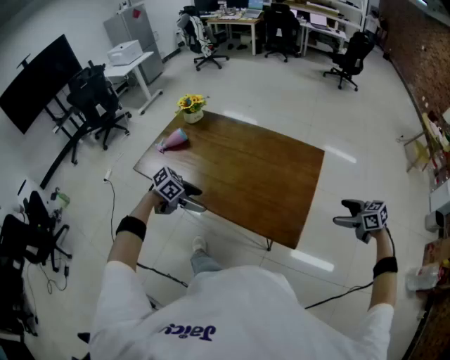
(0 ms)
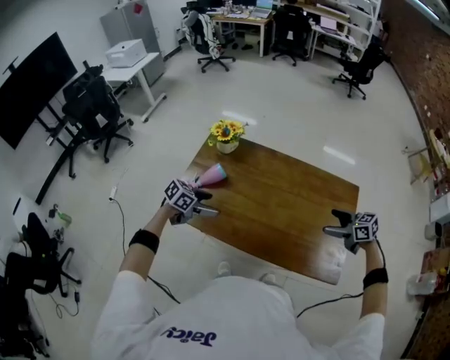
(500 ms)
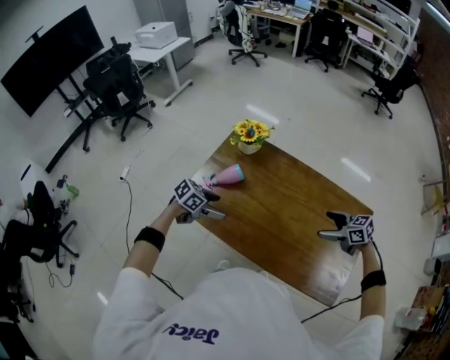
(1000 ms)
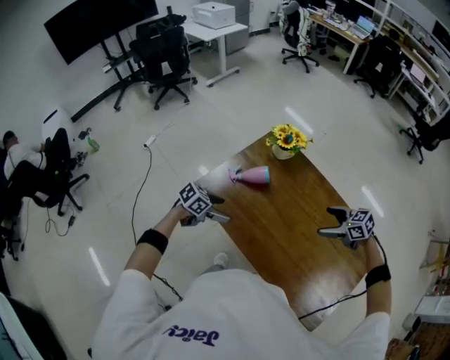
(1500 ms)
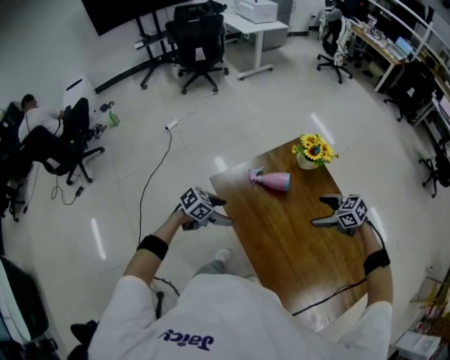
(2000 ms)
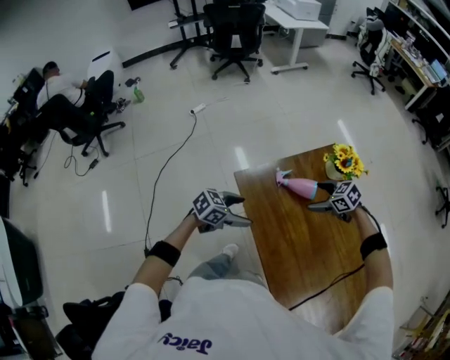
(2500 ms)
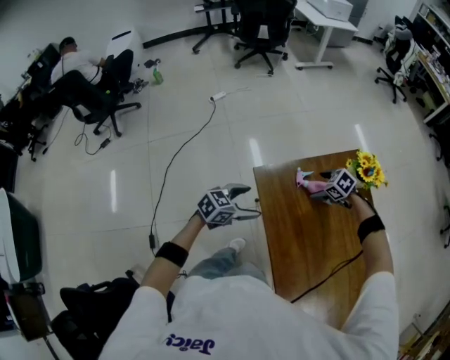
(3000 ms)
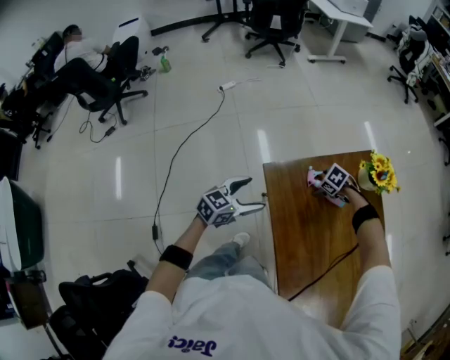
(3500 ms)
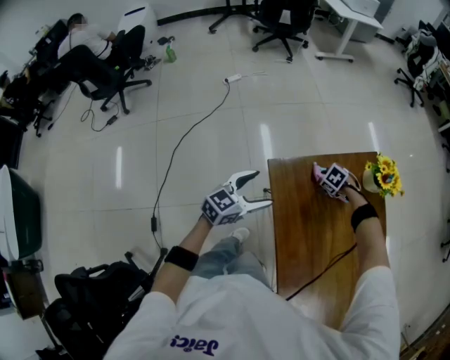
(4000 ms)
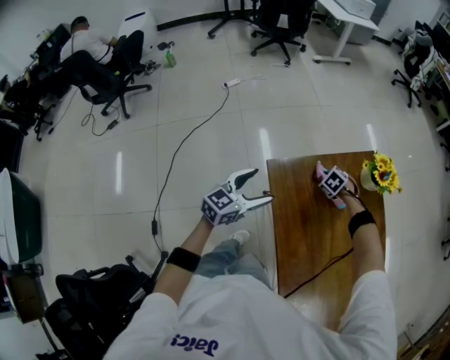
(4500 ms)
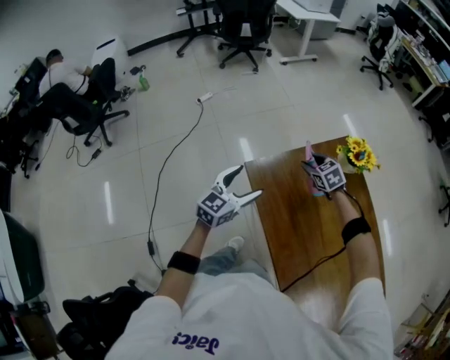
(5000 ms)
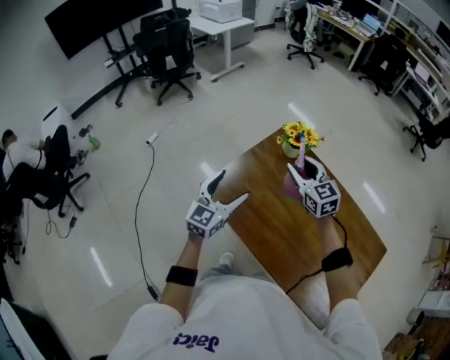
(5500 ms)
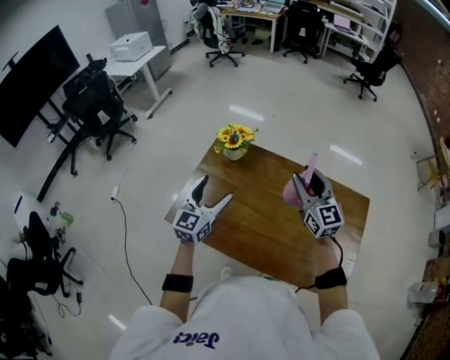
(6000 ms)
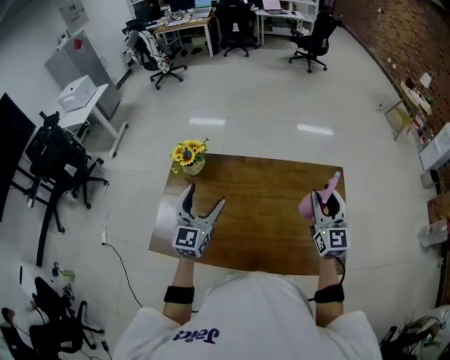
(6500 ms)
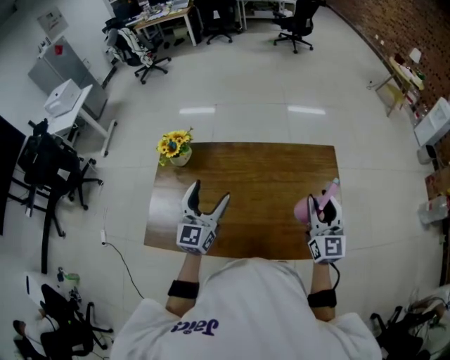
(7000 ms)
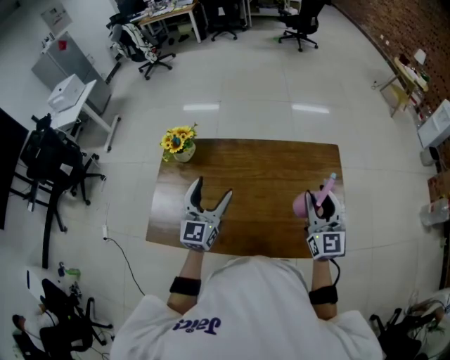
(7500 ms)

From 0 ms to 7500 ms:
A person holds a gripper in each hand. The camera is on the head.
From 0 ms to 2000 ms: The right gripper shifts by approximately 70 cm, and rotates approximately 50 degrees; the left gripper shifts by roughly 40 cm, and turns by about 40 degrees.
From 2000 ms to 4000 ms: The left gripper ends up some 15 cm from where it was, and swivels some 50 degrees. The right gripper moves roughly 40 cm, and angles its fingers downward, by approximately 30 degrees.
From 4000 ms to 5500 ms: The right gripper moves upward, roughly 35 cm, tilts its fingers approximately 60 degrees upward, and closes. The left gripper moves upward, about 15 cm.
From 5500 ms to 7500 ms: The left gripper moves some 30 cm, and rotates some 30 degrees; the right gripper moves roughly 50 cm, and changes its angle by approximately 70 degrees.

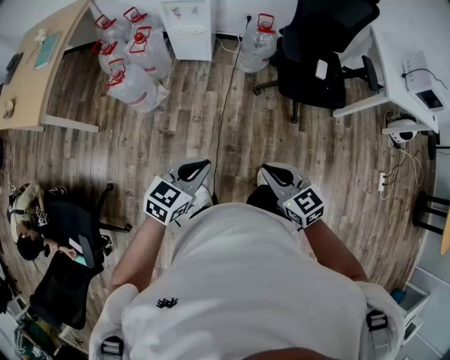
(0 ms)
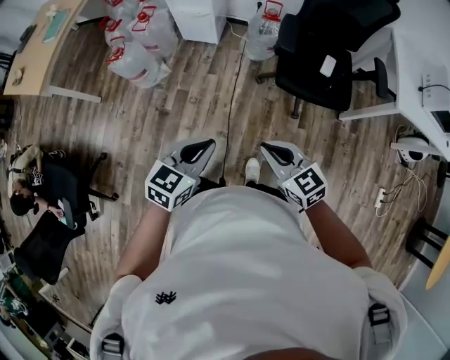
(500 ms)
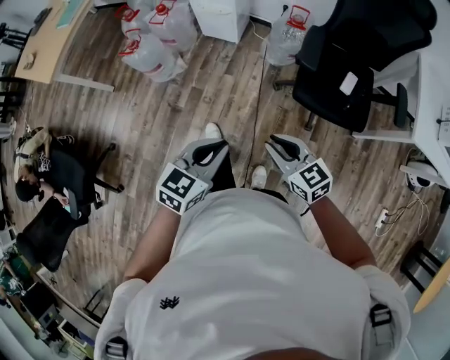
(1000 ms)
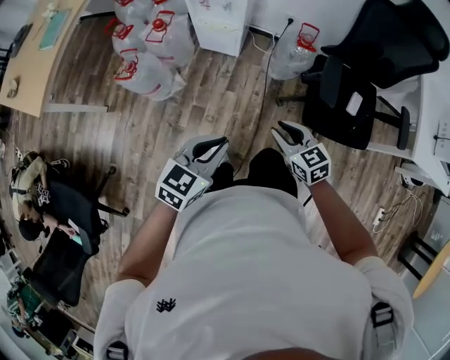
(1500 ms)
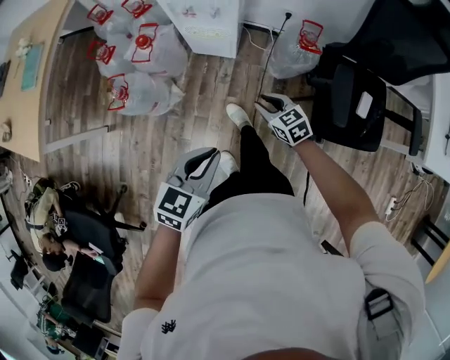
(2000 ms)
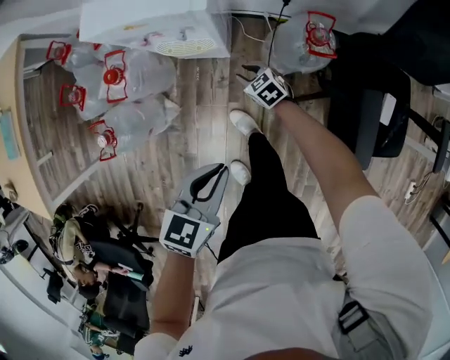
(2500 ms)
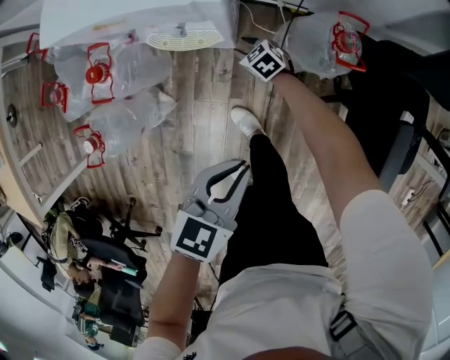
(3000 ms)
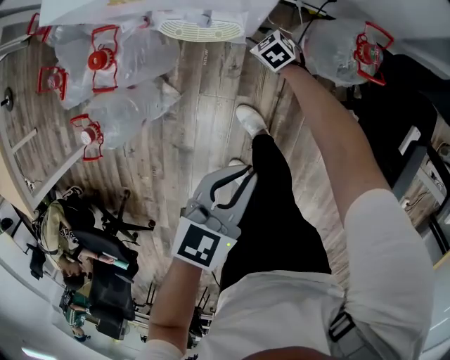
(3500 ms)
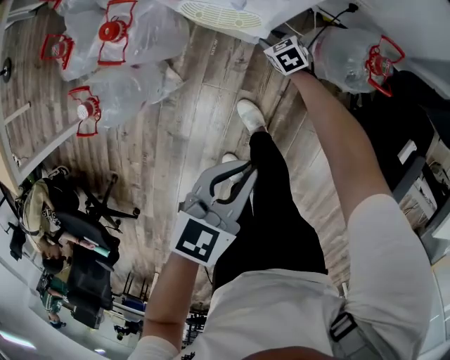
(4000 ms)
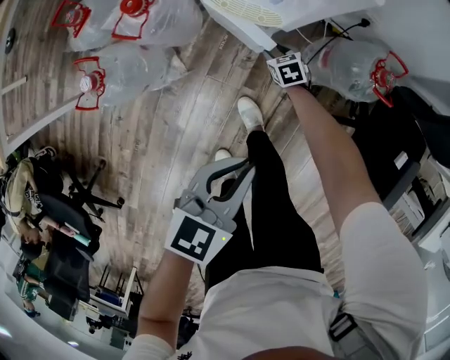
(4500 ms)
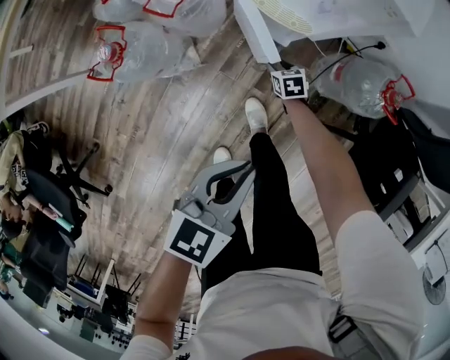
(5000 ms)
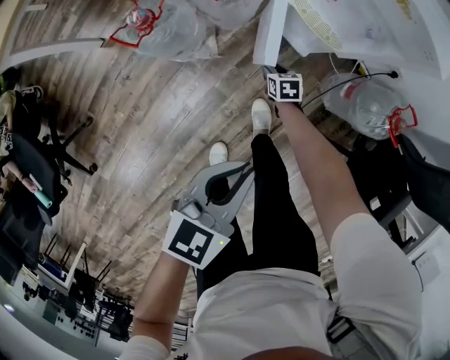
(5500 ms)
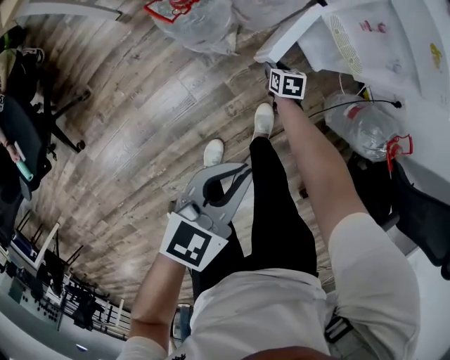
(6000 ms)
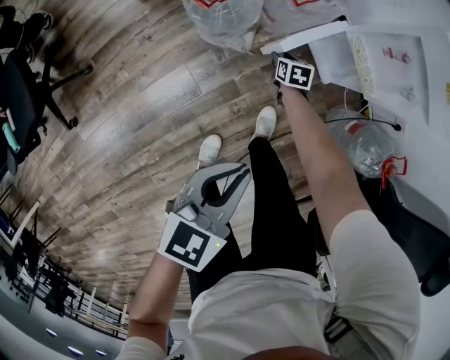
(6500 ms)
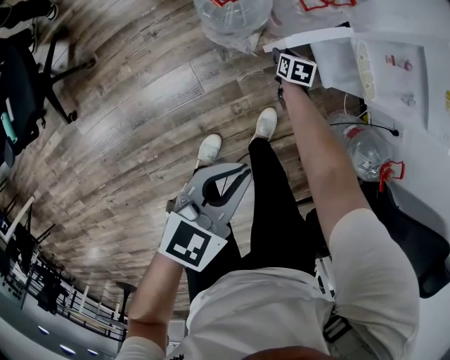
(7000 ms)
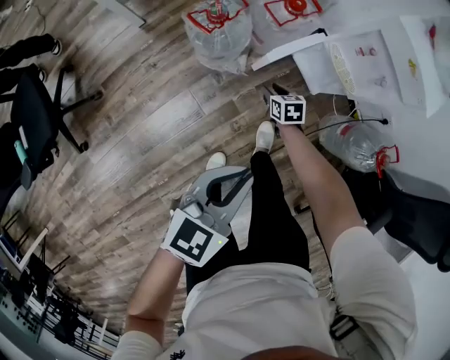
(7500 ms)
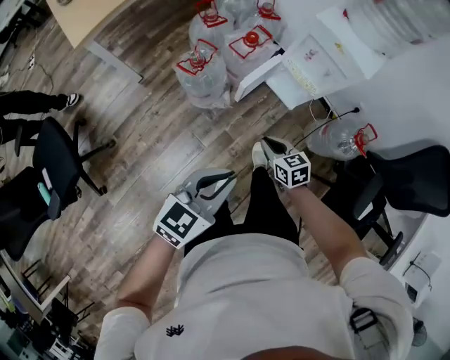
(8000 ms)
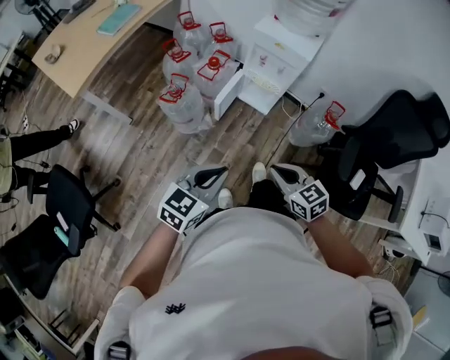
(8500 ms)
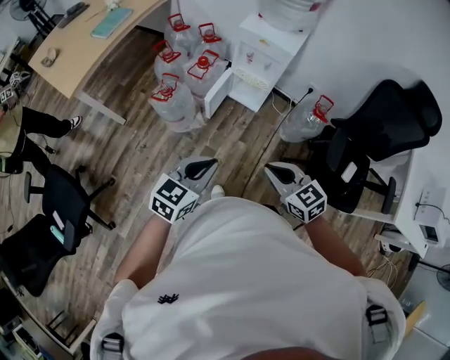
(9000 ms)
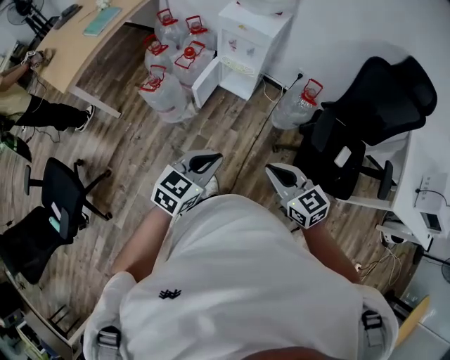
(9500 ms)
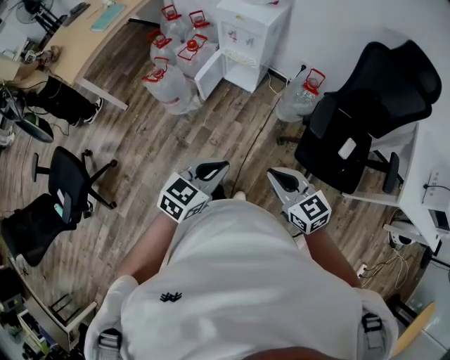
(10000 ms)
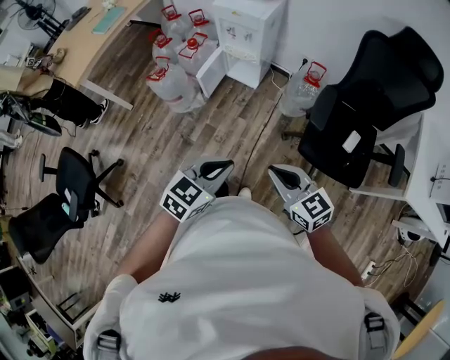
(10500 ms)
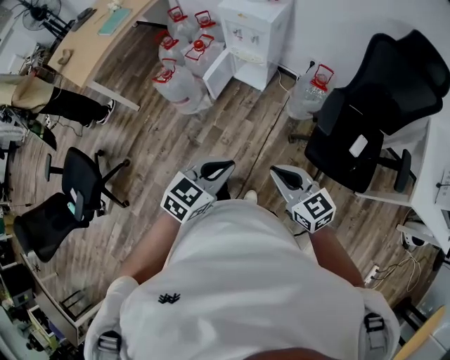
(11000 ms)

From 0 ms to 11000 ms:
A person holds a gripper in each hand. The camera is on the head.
From 0 ms to 2000 ms: The left gripper heads forward, covering approximately 35 cm. Meanwhile the right gripper travels forward and downward by some 50 cm, and opens its fingers.
From 2000 ms to 3500 ms: The left gripper travels forward and downward by approximately 25 cm; the right gripper travels forward and downward by some 50 cm.
From 3500 ms to 5500 ms: The grippers both shift to the left and backward by some 20 cm. The left gripper rotates roughly 30 degrees.
From 5500 ms to 7500 ms: The right gripper travels to the left and upward by about 20 cm. The left gripper moves to the left, upward and backward, about 15 cm.
From 7500 ms to 9000 ms: The right gripper is displaced upward and backward by about 60 cm, changes its angle by roughly 30 degrees, and closes its fingers. Meanwhile the left gripper moves upward and backward, some 20 cm, and turns by roughly 20 degrees.
From 9000 ms to 11000 ms: Both grippers move to the right and backward, about 20 cm.

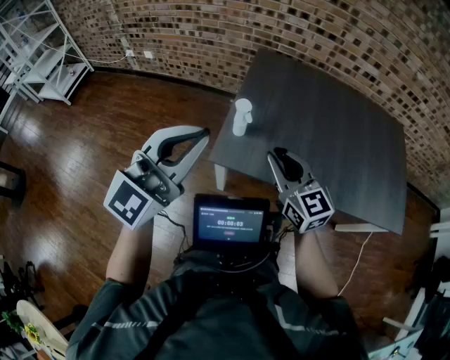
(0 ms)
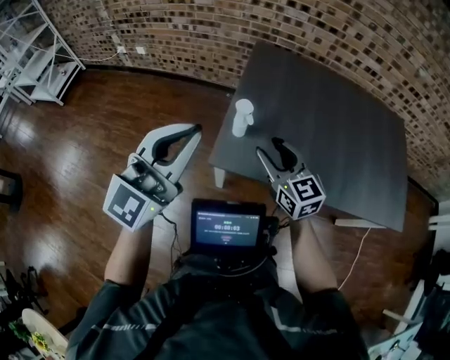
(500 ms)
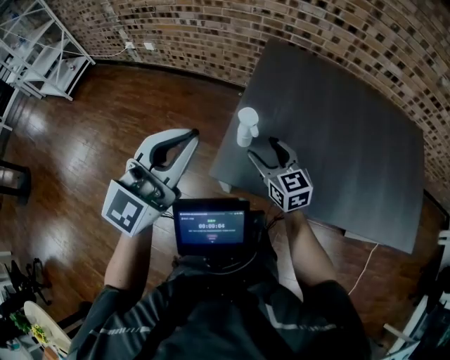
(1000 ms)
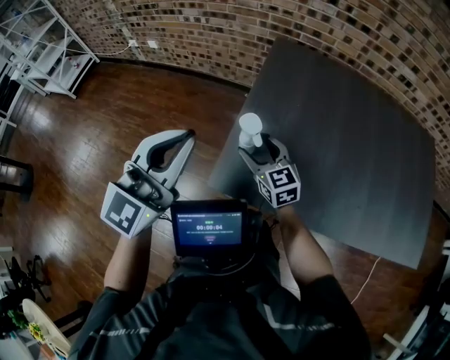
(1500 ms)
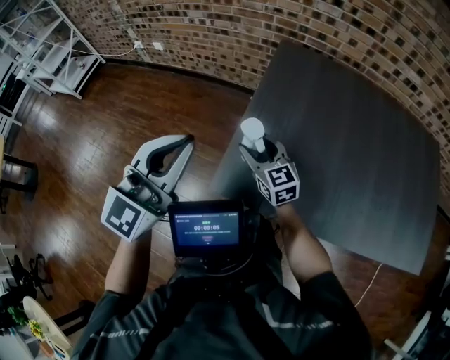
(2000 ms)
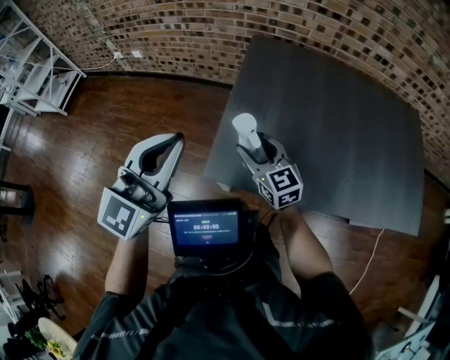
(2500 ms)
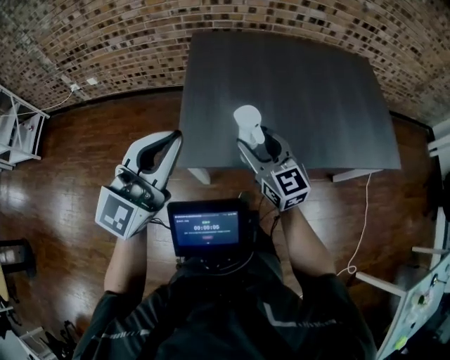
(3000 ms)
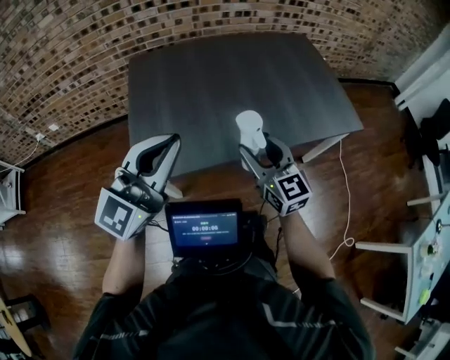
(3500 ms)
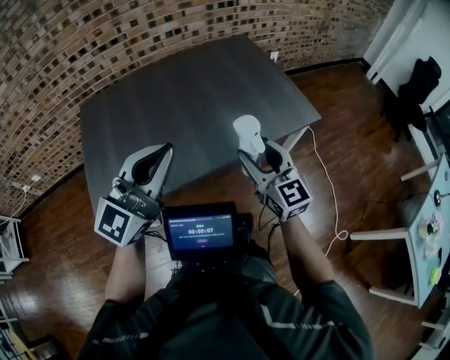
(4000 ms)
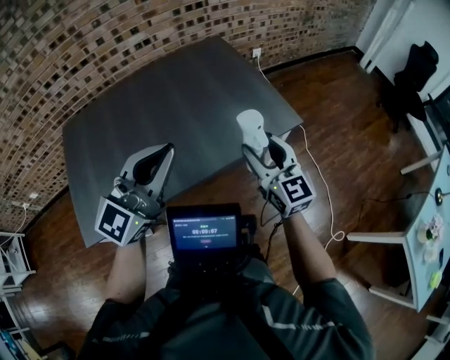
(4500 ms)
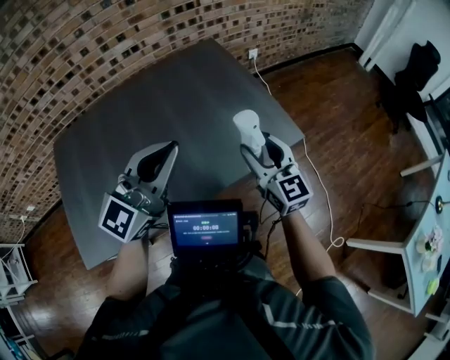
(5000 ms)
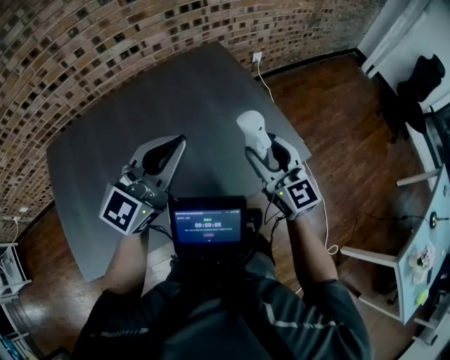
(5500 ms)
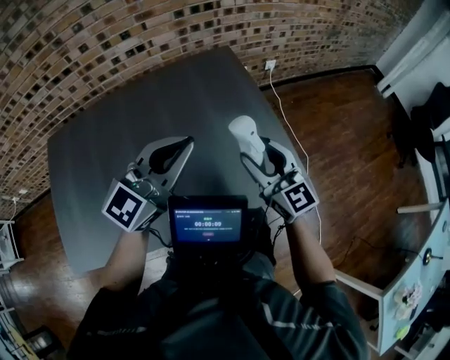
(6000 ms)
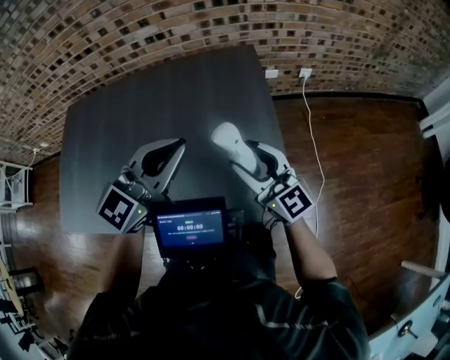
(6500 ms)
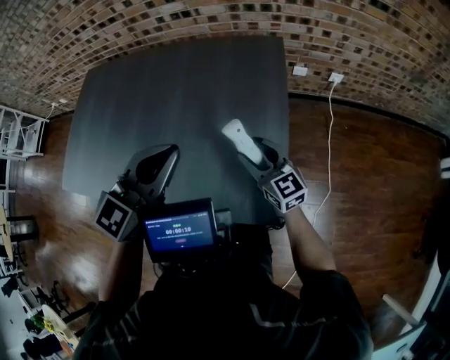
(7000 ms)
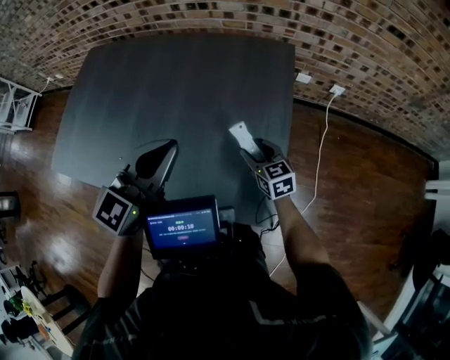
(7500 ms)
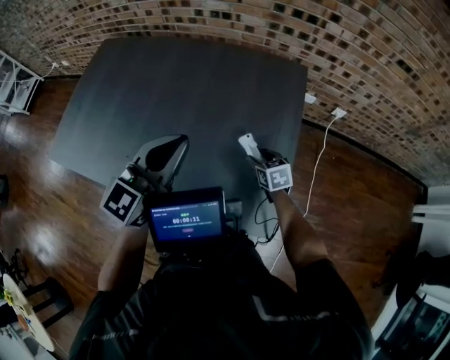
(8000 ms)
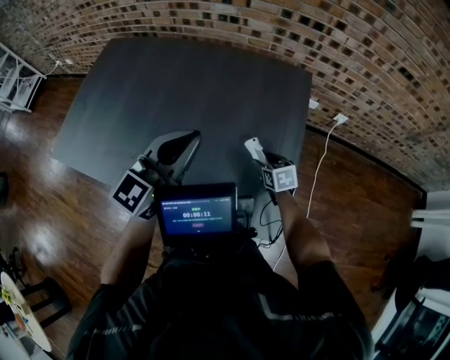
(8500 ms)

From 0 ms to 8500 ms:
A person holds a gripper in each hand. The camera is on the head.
From 0 ms to 2000 ms: The right gripper is displaced forward, downward and to the left by some 30 cm, and opens its fingers, while the left gripper goes about 20 cm forward and downward.
From 2000 ms to 4000 ms: The pair of grippers is taken roughly 60 cm. The left gripper rotates some 50 degrees, while the right gripper rotates approximately 50 degrees.
From 4000 ms to 6500 ms: Both grippers are carried approximately 50 cm. The right gripper swivels roughly 30 degrees.
From 6500 ms to 8500 ms: The right gripper shifts roughly 25 cm downward and forward, and tilts its fingers about 50 degrees downward, while the left gripper shifts approximately 5 cm to the left, and swivels some 30 degrees.
